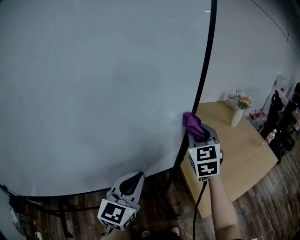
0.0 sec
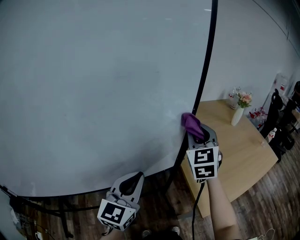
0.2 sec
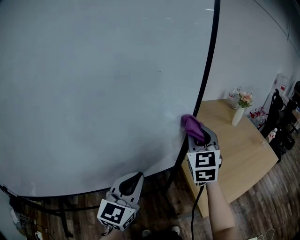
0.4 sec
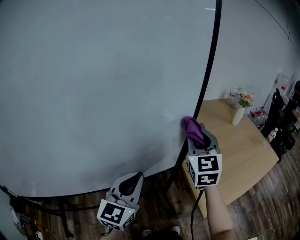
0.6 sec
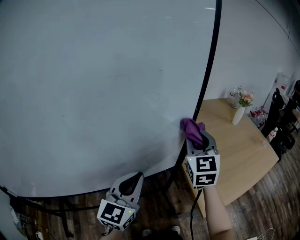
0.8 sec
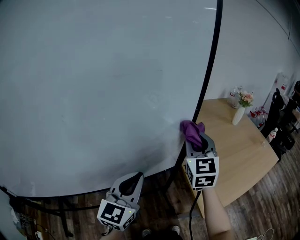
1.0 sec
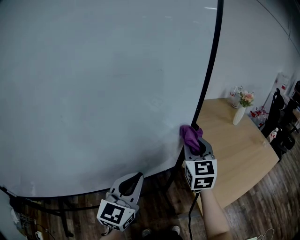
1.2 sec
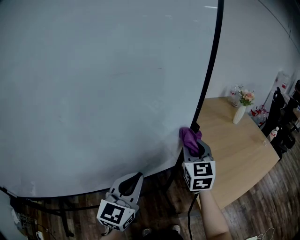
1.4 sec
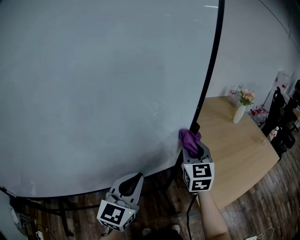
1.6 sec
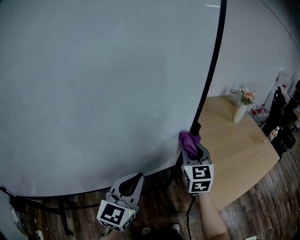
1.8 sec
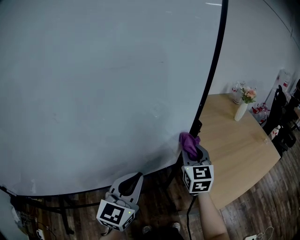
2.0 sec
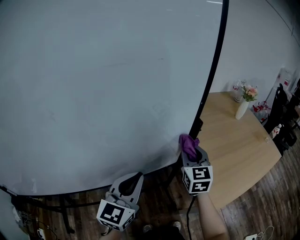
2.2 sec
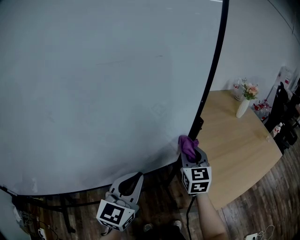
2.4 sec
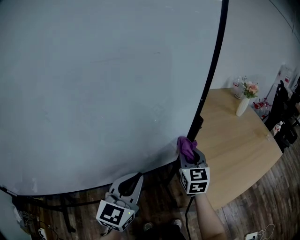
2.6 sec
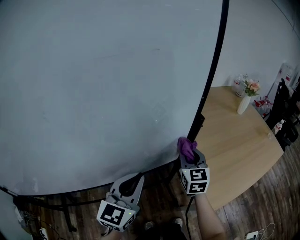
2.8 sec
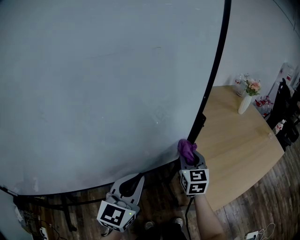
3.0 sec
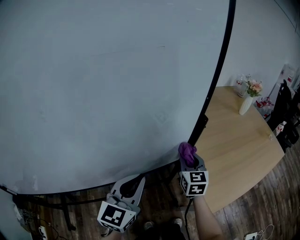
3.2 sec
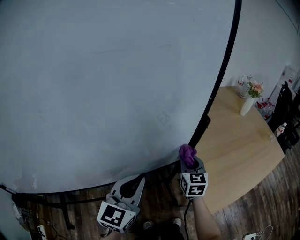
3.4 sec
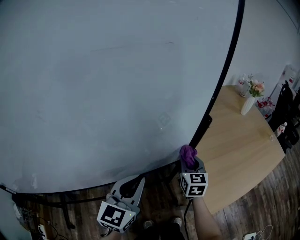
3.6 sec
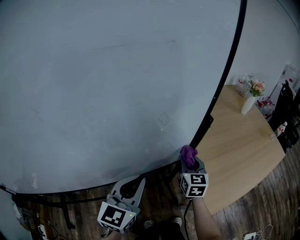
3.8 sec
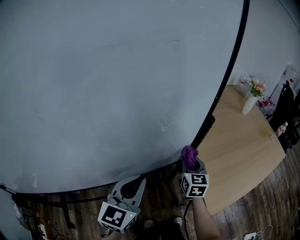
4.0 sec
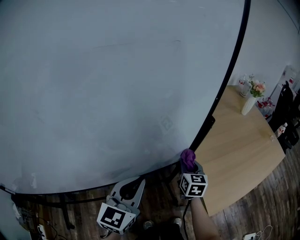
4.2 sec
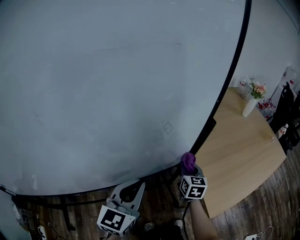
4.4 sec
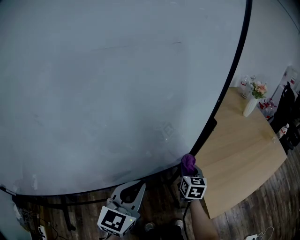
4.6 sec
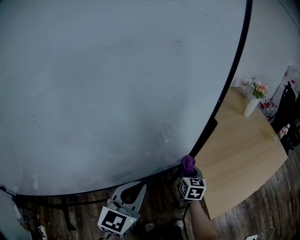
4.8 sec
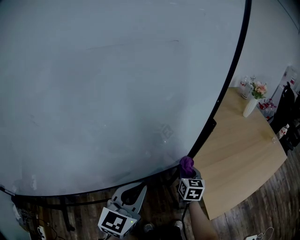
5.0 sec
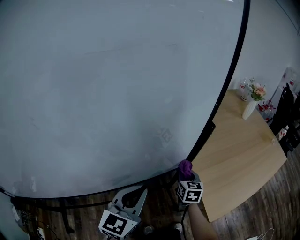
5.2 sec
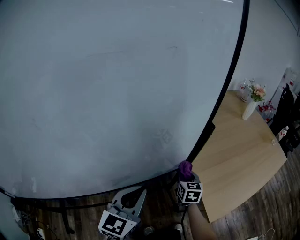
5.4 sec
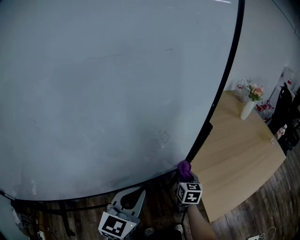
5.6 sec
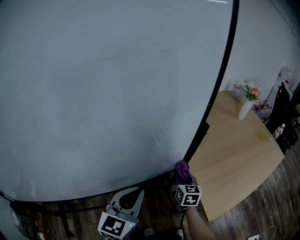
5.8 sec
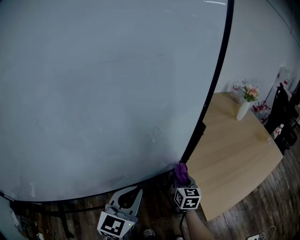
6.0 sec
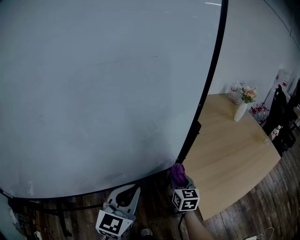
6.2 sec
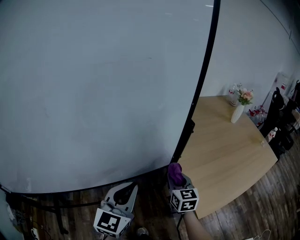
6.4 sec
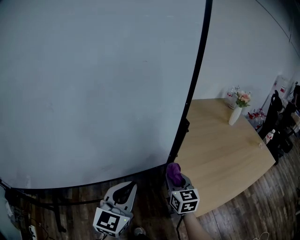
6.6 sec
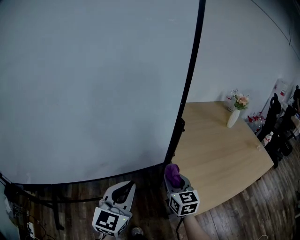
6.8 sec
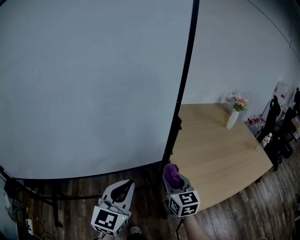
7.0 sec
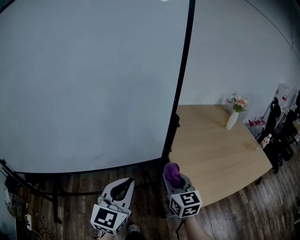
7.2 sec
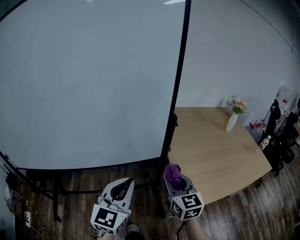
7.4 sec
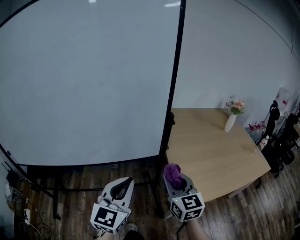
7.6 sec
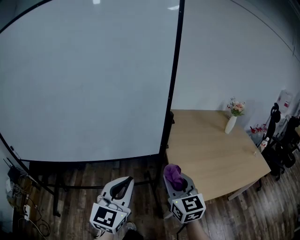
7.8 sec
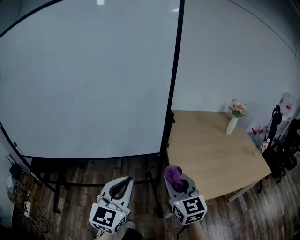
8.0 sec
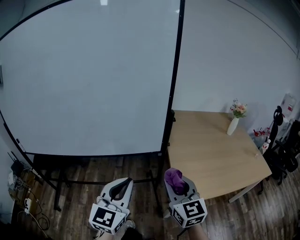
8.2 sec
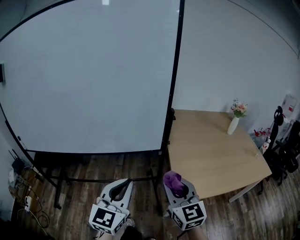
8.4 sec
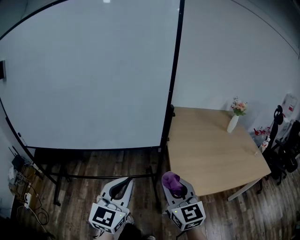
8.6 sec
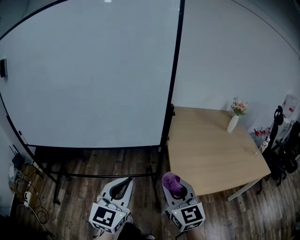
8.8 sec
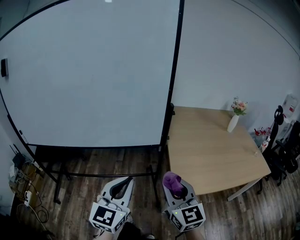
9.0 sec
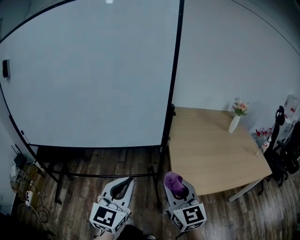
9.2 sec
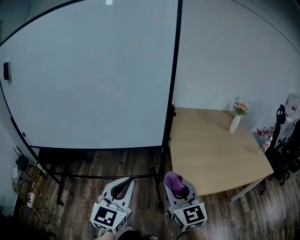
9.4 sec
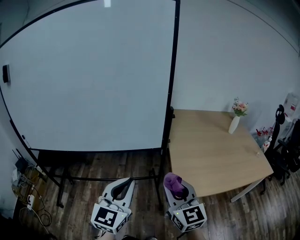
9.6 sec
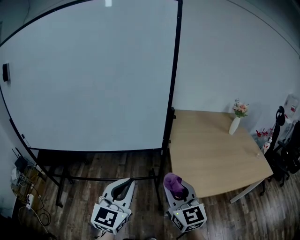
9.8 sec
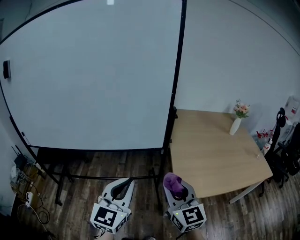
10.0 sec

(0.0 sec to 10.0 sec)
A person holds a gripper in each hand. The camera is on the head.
0.0 sec - 1.4 sec: The right gripper travels downward by roughly 5 cm.
1.4 sec - 2.8 sec: The right gripper moves downward, about 10 cm.
2.8 sec - 4.2 sec: The right gripper moves downward, roughly 10 cm.
4.2 sec - 5.8 sec: The grippers move only a little.
5.8 sec - 7.2 sec: The right gripper goes about 25 cm upward and backward, and turns by roughly 20 degrees. The left gripper travels backward, upward and to the right by about 15 cm.
7.2 sec - 8.6 sec: The two grippers go about 15 cm backward.
8.6 sec - 10.0 sec: The grippers move only a little.

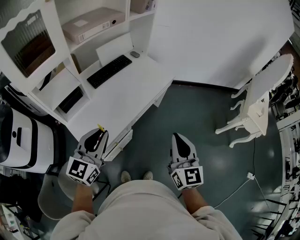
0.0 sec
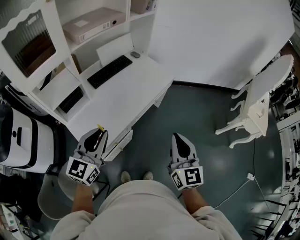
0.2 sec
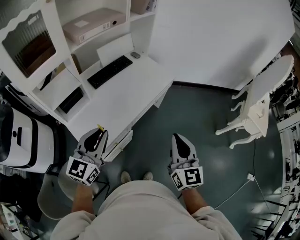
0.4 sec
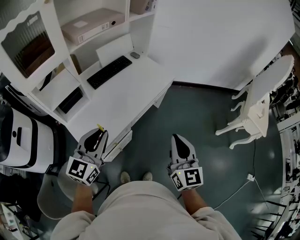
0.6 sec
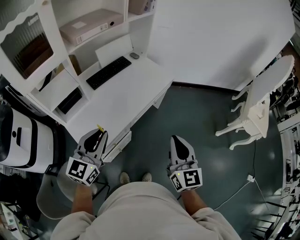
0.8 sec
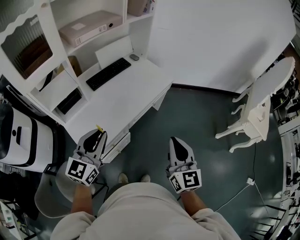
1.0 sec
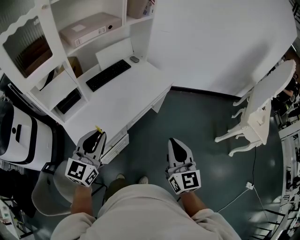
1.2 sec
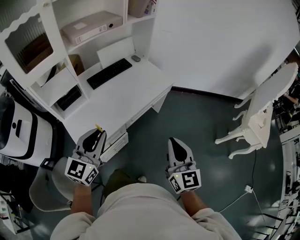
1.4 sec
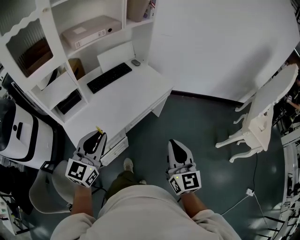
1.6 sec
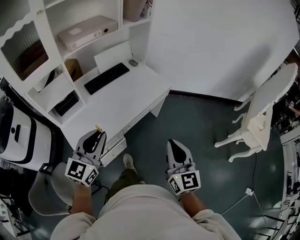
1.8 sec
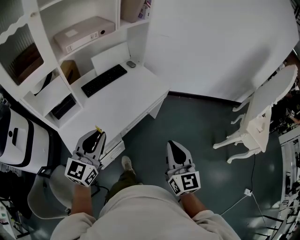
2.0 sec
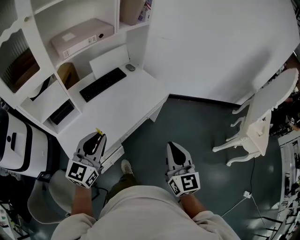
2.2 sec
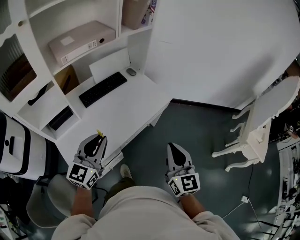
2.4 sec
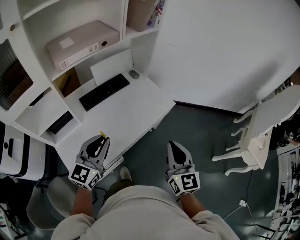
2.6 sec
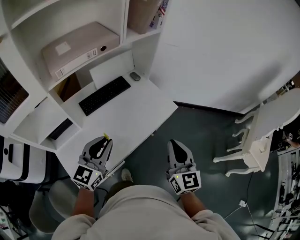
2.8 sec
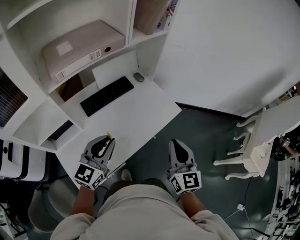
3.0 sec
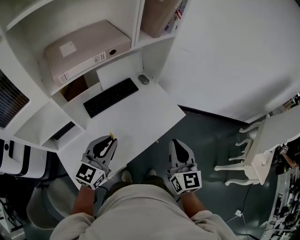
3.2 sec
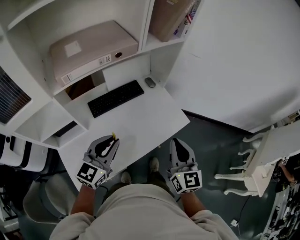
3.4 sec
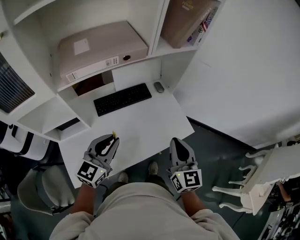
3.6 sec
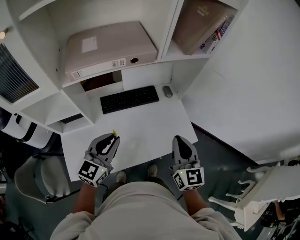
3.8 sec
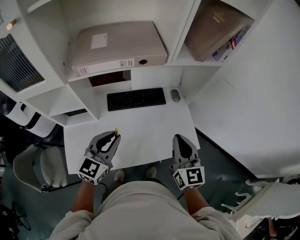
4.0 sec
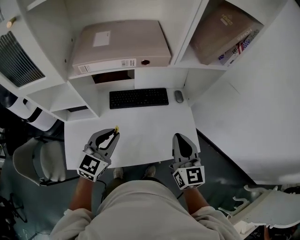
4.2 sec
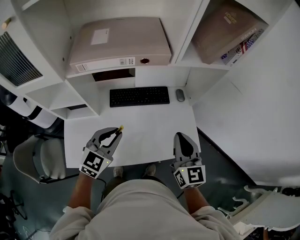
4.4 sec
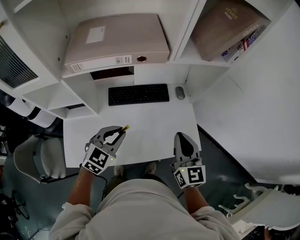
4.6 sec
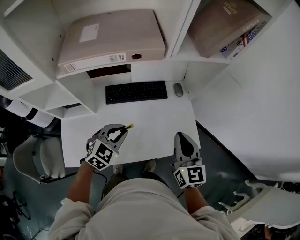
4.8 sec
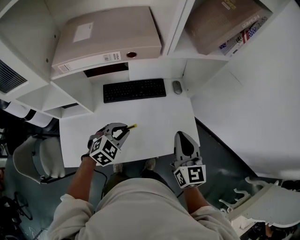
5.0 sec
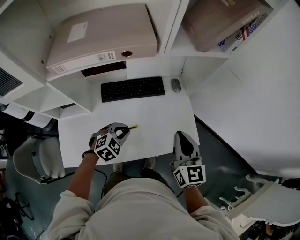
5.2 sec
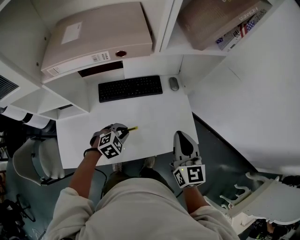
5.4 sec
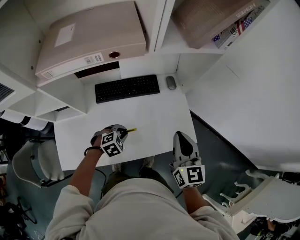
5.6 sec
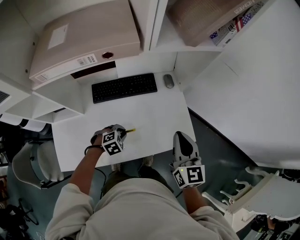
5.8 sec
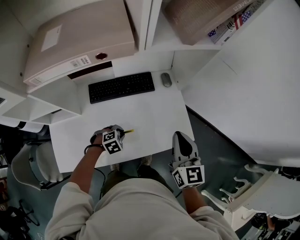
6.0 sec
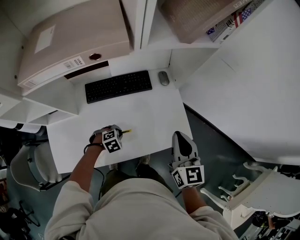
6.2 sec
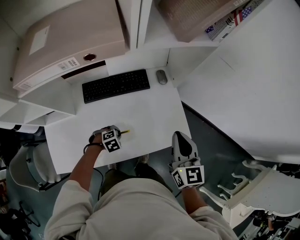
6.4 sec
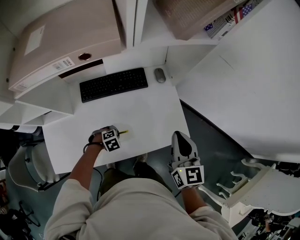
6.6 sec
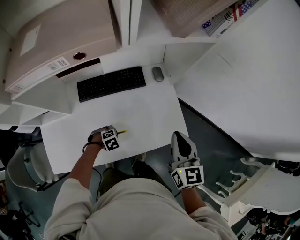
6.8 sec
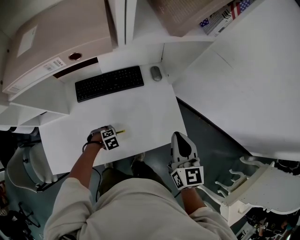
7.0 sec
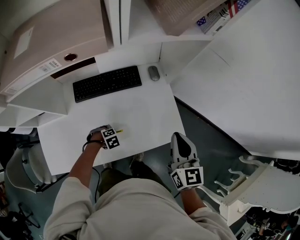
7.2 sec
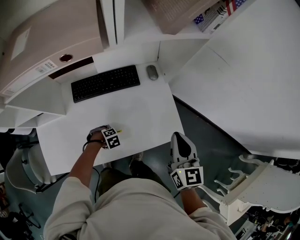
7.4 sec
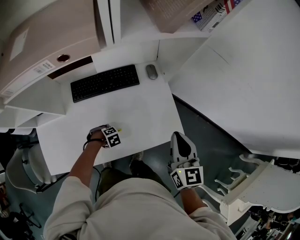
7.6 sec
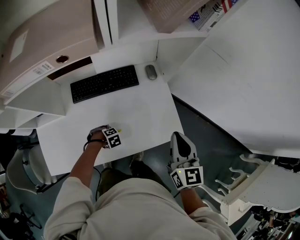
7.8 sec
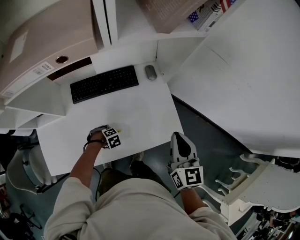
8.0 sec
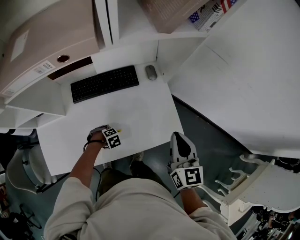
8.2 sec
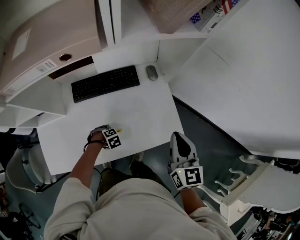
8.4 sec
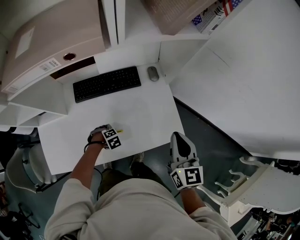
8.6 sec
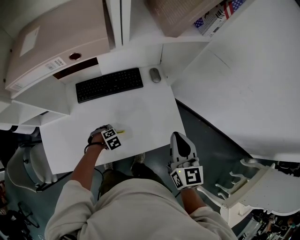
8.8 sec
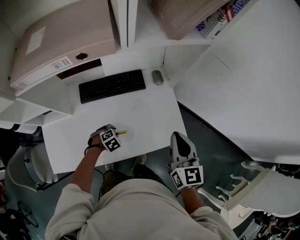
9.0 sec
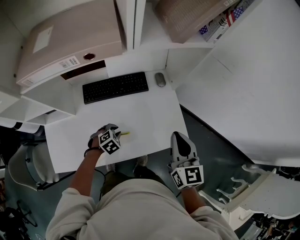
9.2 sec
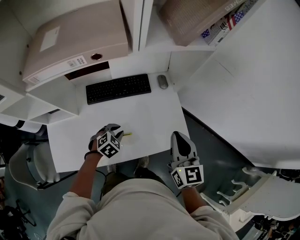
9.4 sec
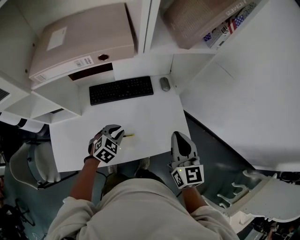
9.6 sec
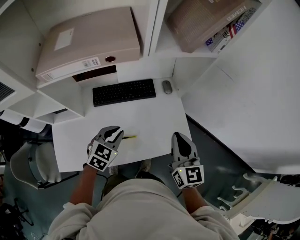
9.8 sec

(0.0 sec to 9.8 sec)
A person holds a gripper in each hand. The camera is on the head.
0.0 sec - 1.4 sec: Both grippers travel together to the right, some 5 cm.
1.4 sec - 2.8 sec: Both grippers move forward, about 25 cm.
2.8 sec - 4.2 sec: The right gripper ends up roughly 25 cm from where it was, and rotates approximately 30 degrees, while the left gripper changes place by about 15 cm, and turns by some 30 degrees.
4.2 sec - 5.6 sec: The left gripper moves downward, about 25 cm, and tips its fingers downward by about 50 degrees. The right gripper goes about 10 cm to the right and downward.
5.6 sec - 7.0 sec: The right gripper changes place by some 5 cm. The left gripper heads downward, covering approximately 15 cm, and turns by some 20 degrees.
7.0 sec - 8.4 sec: The grippers stay close to where they were, moving slightly.
8.4 sec - 9.8 sec: The left gripper heads upward, covering approximately 30 cm, and angles its fingers upward, by approximately 50 degrees. The right gripper moves some 10 cm.

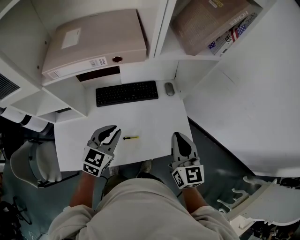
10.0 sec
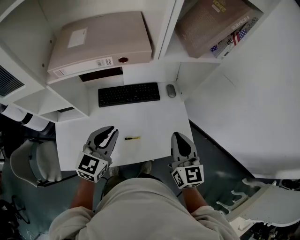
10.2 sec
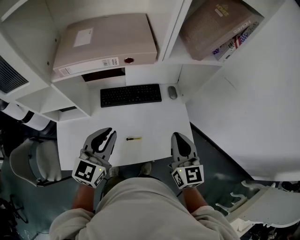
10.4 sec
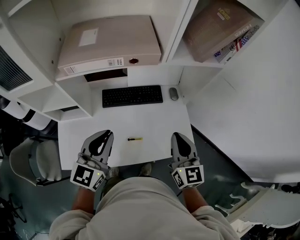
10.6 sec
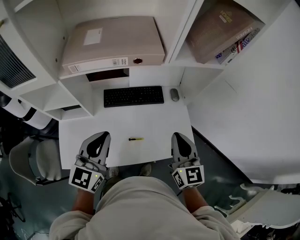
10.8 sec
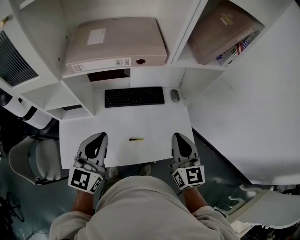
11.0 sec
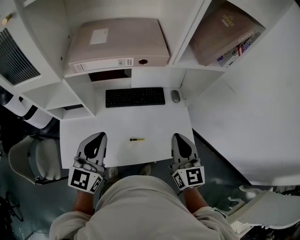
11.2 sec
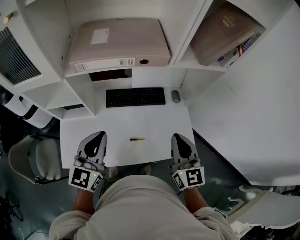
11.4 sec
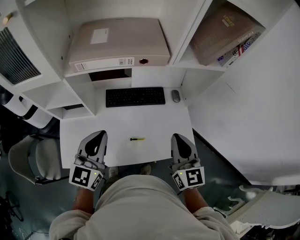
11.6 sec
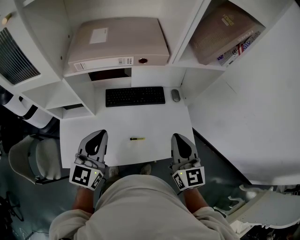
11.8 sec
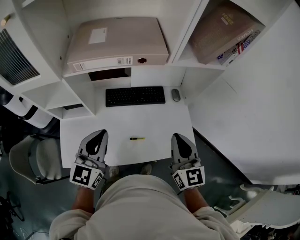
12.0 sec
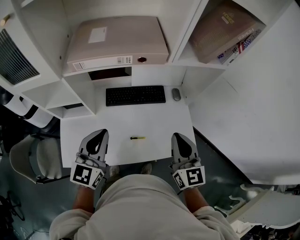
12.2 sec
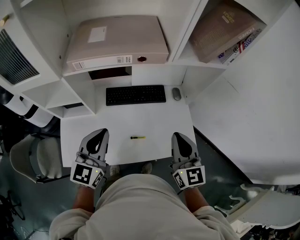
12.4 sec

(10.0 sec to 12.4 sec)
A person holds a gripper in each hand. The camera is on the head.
10.0 sec - 11.2 sec: The right gripper is displaced to the left by about 5 cm, while the left gripper shifts about 15 cm upward, to the left and backward, and changes its angle by some 30 degrees.
11.2 sec - 12.4 sec: The grippers make only small movements.

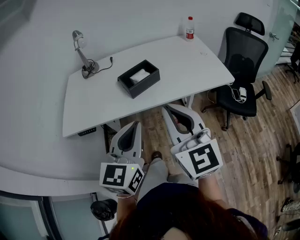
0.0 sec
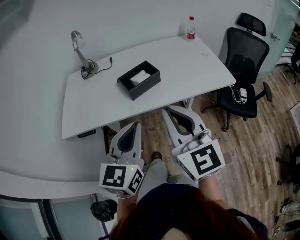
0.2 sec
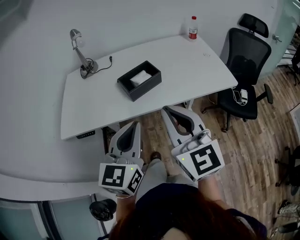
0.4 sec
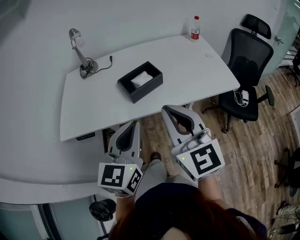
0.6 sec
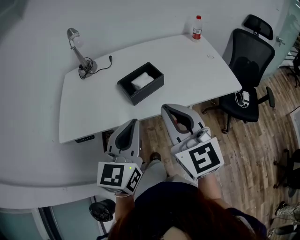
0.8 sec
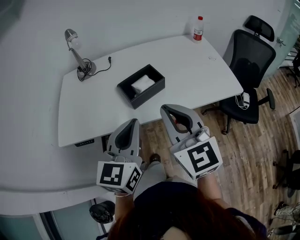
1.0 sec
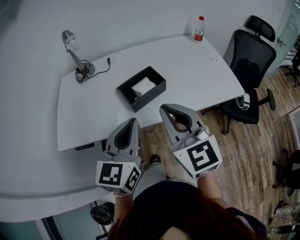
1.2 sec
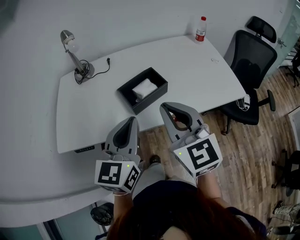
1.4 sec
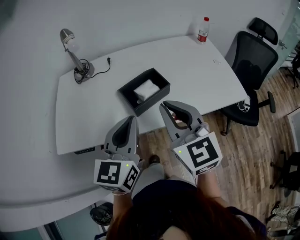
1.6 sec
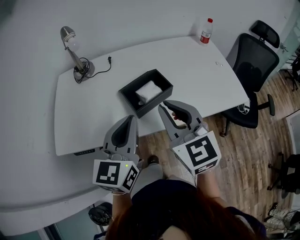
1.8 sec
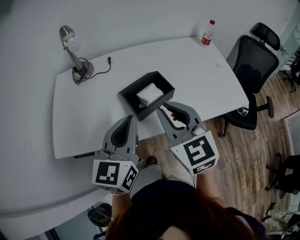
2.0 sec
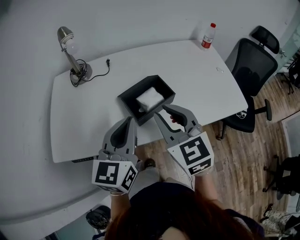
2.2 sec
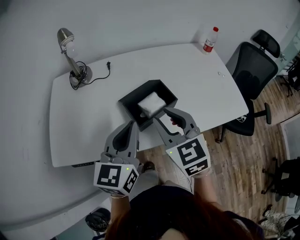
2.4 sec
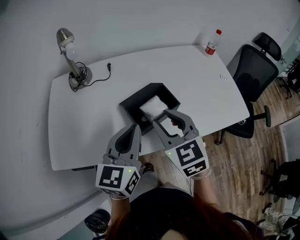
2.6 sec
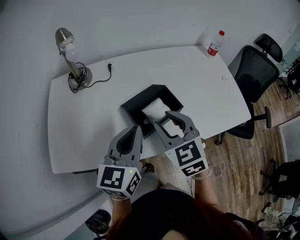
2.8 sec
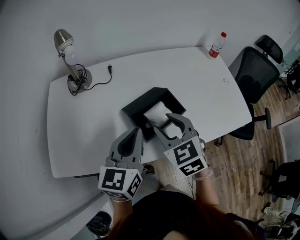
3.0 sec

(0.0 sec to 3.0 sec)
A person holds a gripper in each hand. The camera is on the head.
0.0 sec - 1.6 sec: Both grippers travel together forward, about 15 cm.
1.6 sec - 3.0 sec: The left gripper is displaced forward and downward by about 10 cm, while the right gripper travels forward, downward and to the left by approximately 20 cm, swivels roughly 30 degrees, and opens.
